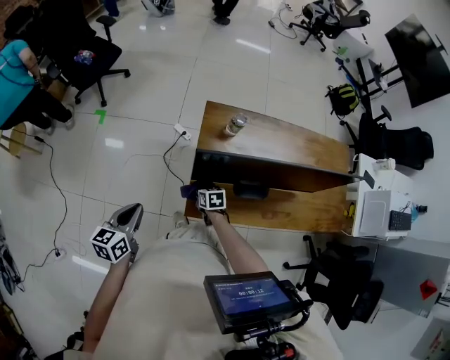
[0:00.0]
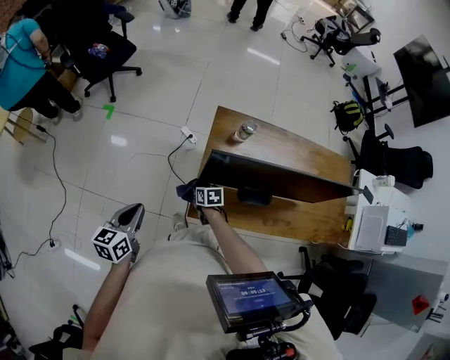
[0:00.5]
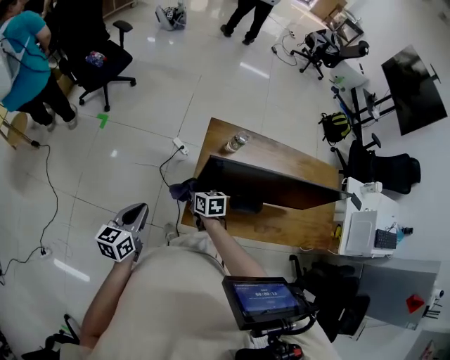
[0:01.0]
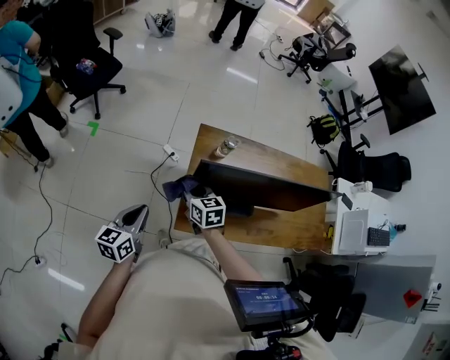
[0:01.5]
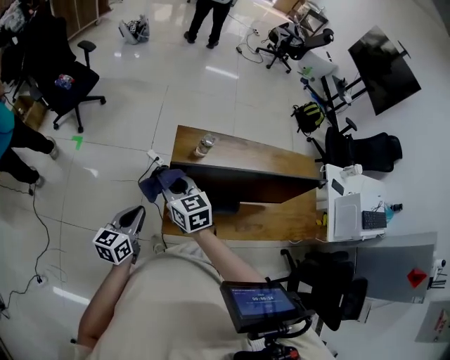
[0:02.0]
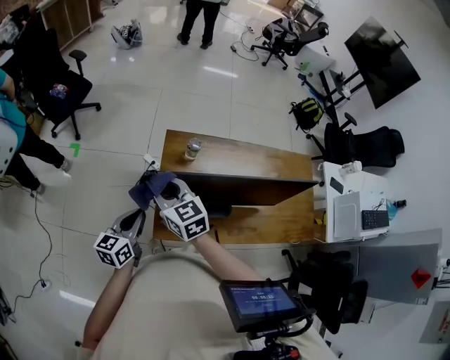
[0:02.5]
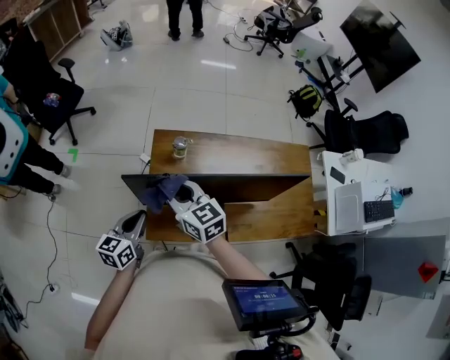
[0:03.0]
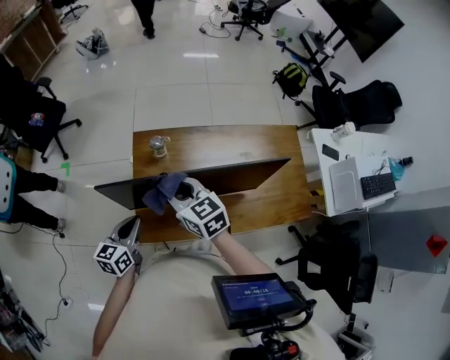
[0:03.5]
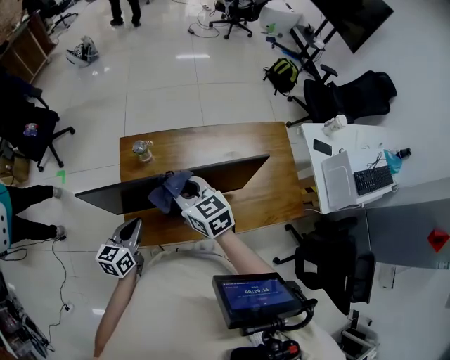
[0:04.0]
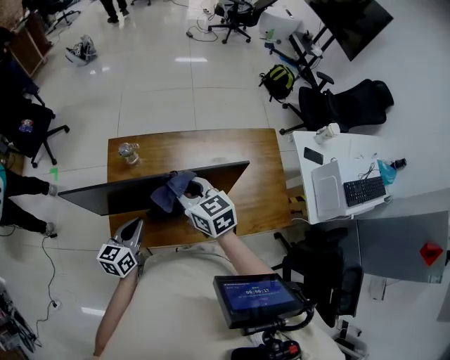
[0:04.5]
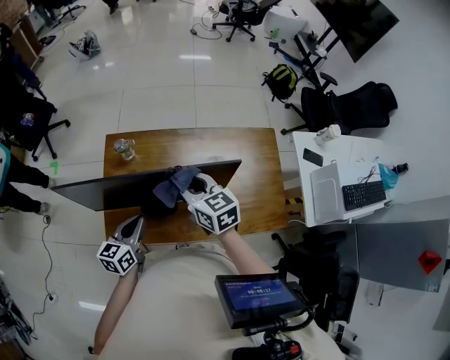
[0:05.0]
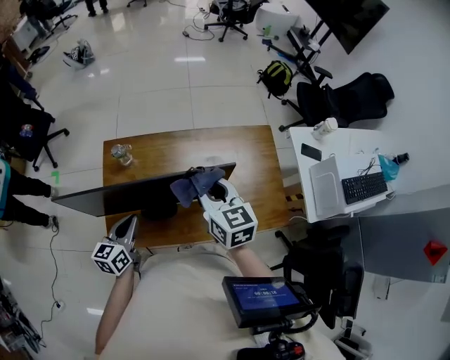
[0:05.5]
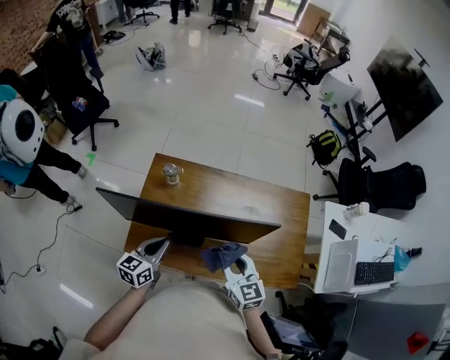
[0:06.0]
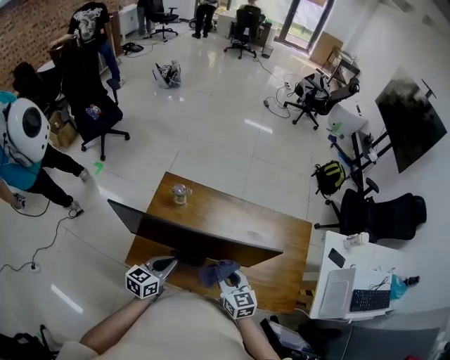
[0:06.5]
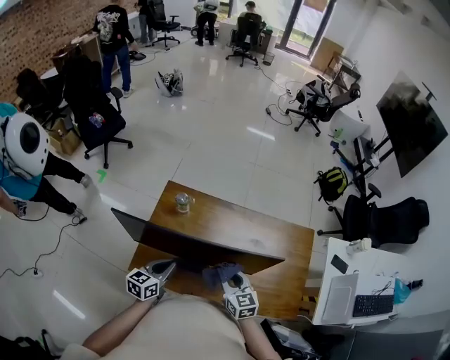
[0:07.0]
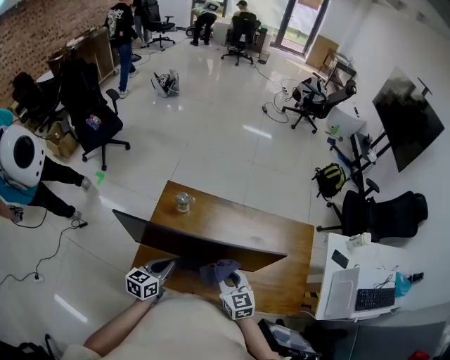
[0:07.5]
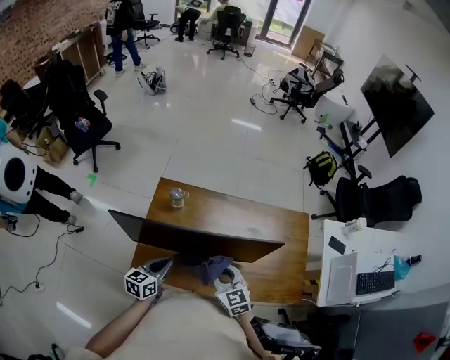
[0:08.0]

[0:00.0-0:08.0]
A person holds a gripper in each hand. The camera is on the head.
0.0 to 2.0 s: The left gripper travels to the right by roughly 10 cm; the right gripper moves upward, some 30 cm, and angles its fingers upward, by about 30 degrees.
2.0 to 4.0 s: Both grippers travel together to the right, approximately 25 cm.
4.0 to 6.0 s: The right gripper moves to the right and backward, some 20 cm; the left gripper heads to the right, covering approximately 10 cm.
6.0 to 8.0 s: The right gripper moves to the left, approximately 5 cm.

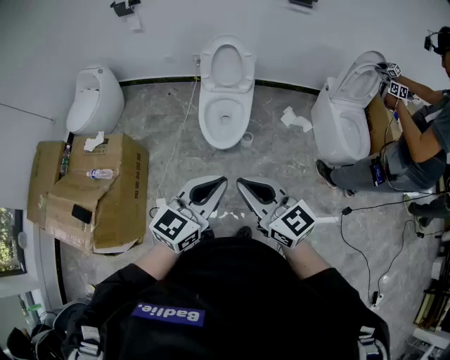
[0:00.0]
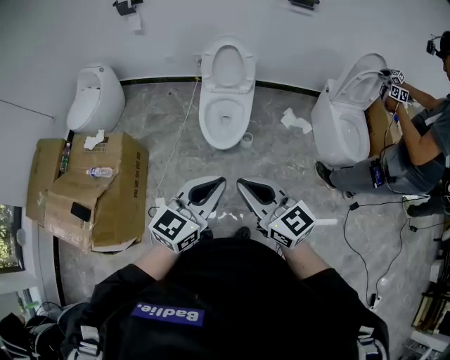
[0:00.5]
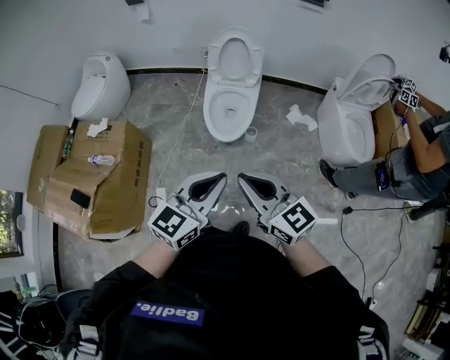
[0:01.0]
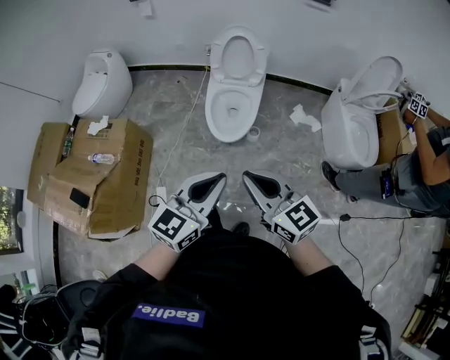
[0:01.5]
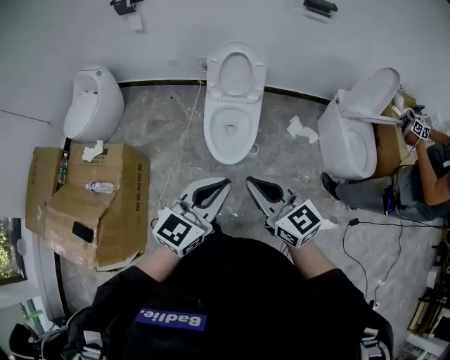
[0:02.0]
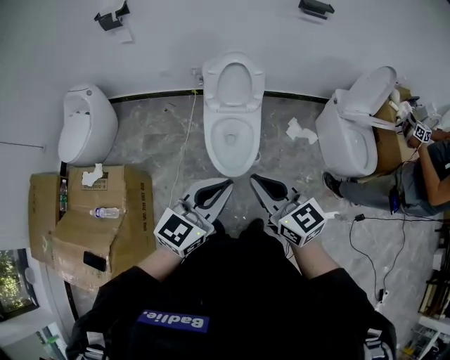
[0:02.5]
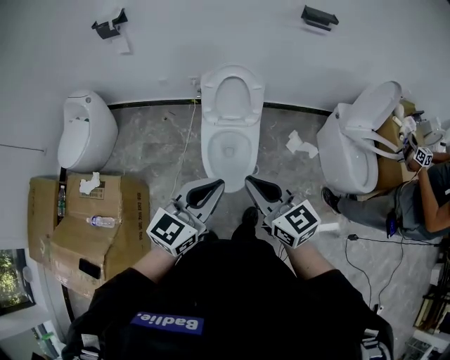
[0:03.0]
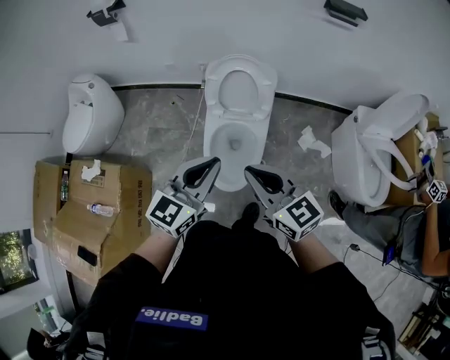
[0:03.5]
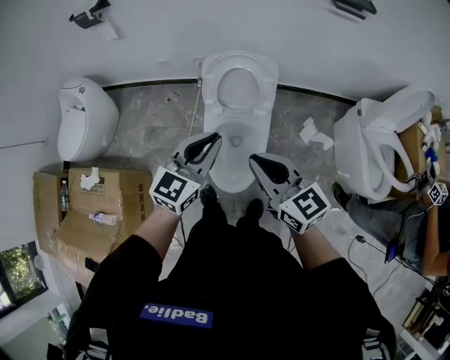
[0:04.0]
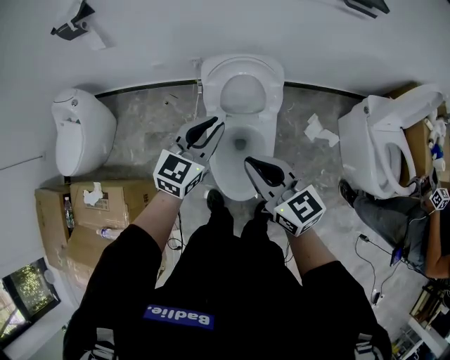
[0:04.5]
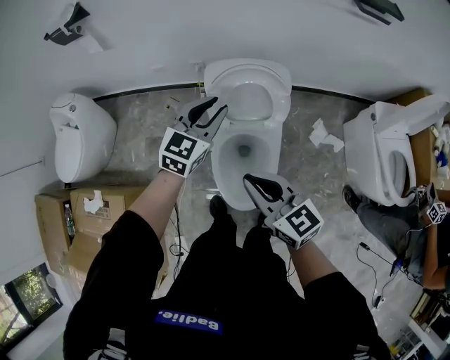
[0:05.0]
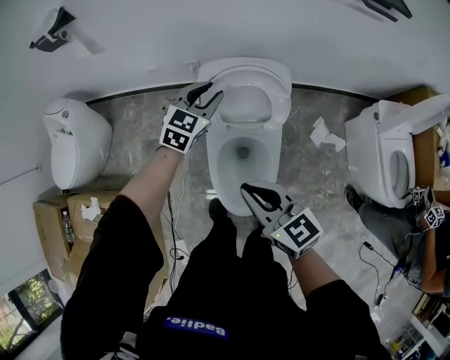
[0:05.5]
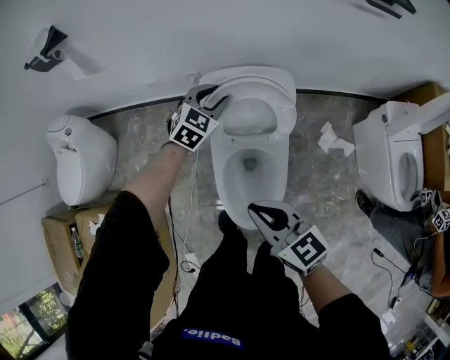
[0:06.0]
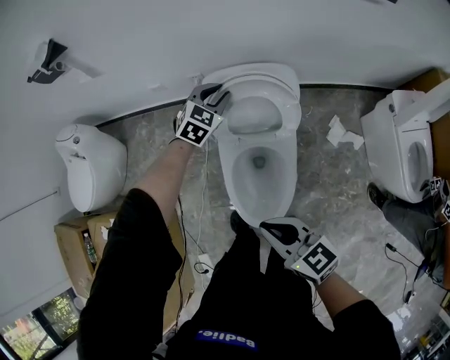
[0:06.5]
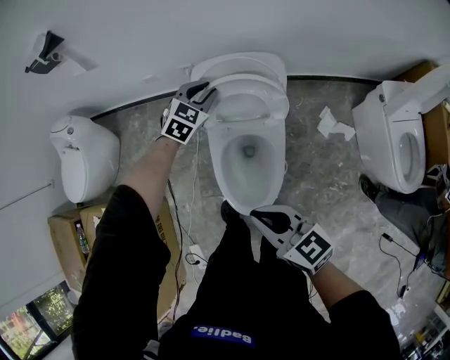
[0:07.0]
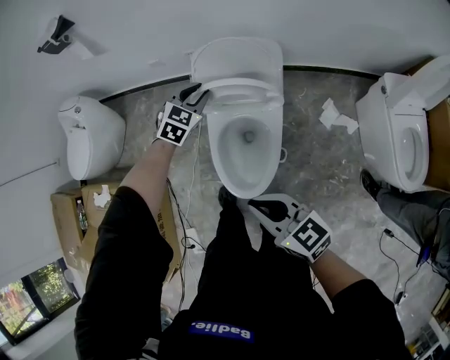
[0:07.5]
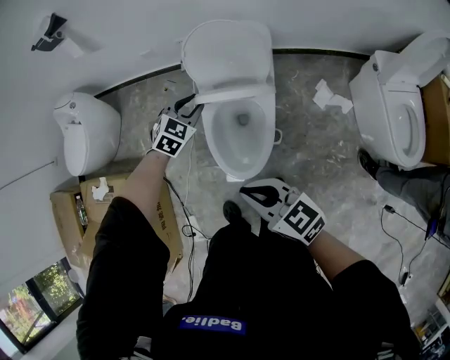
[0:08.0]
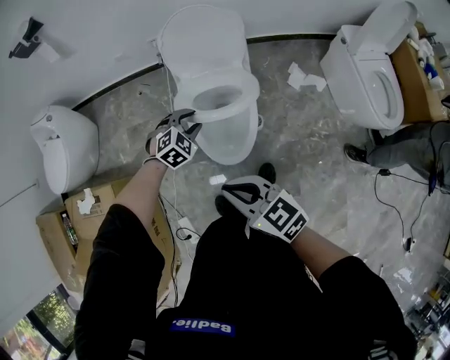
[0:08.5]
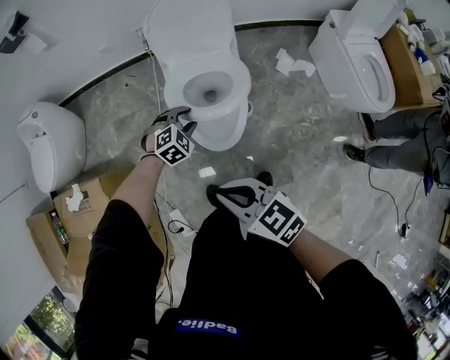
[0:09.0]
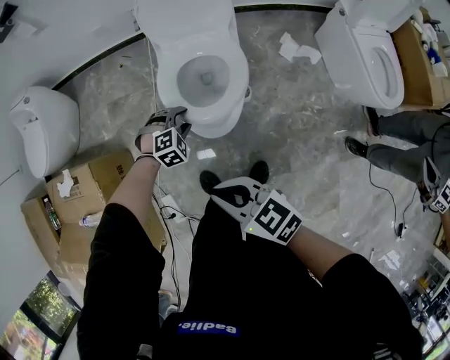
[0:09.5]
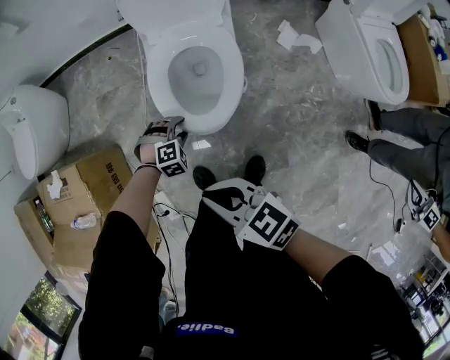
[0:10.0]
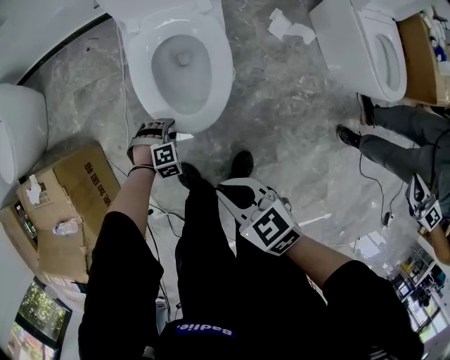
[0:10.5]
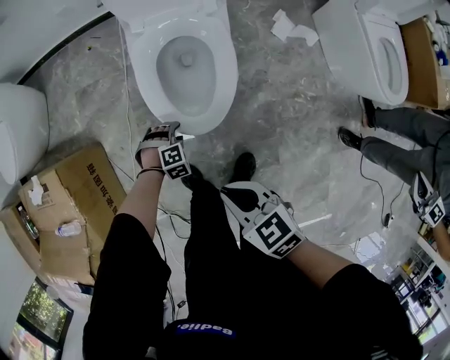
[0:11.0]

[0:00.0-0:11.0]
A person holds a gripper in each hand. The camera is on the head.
0.0 to 2.0 s: Both grippers move forward, roughly 10 cm.
2.0 to 3.5 s: The grippers both shift forward by roughly 30 cm.
3.5 to 5.5 s: The left gripper travels forward and downward by roughly 40 cm, rotates some 20 degrees, and opens its fingers; the right gripper moves forward, downward and to the left, about 20 cm.
5.5 to 7.5 s: The left gripper travels backward and downward by about 10 cm. Meanwhile the right gripper goes some 15 cm backward.
7.5 to 9.0 s: The right gripper shifts some 20 cm backward and to the left, while the left gripper is displaced backward and downward by approximately 30 cm, and turns by approximately 30 degrees.
9.0 to 11.0 s: The right gripper shifts some 15 cm downward; the left gripper moves downward, roughly 25 cm, and swivels roughly 20 degrees.

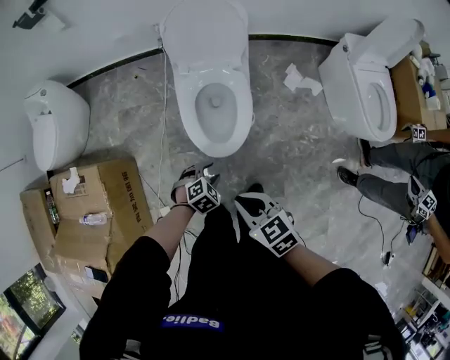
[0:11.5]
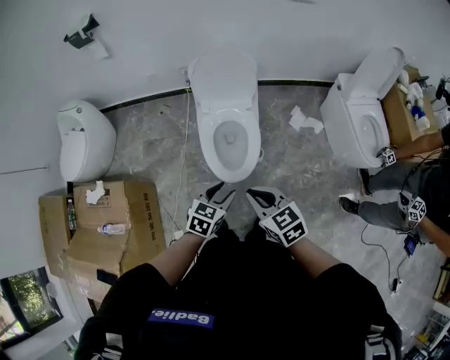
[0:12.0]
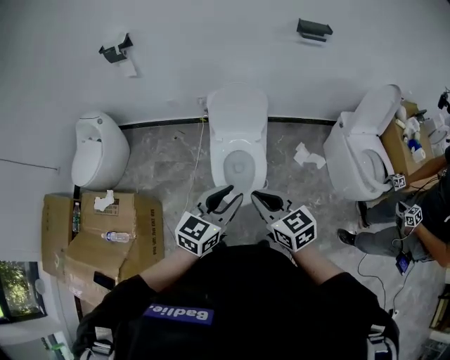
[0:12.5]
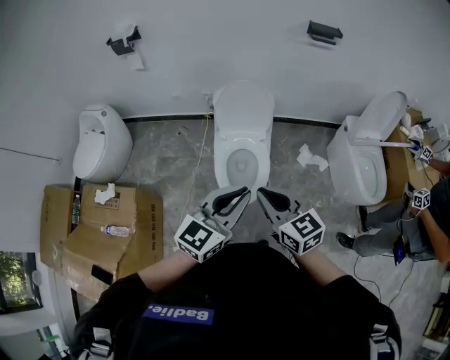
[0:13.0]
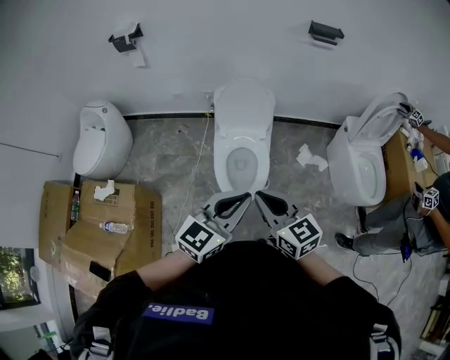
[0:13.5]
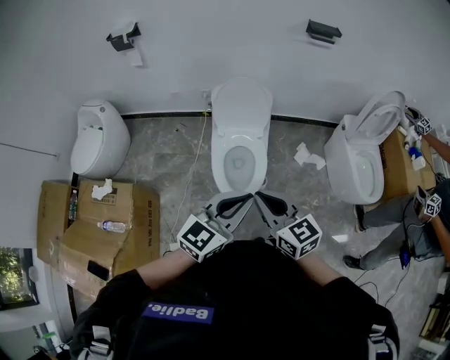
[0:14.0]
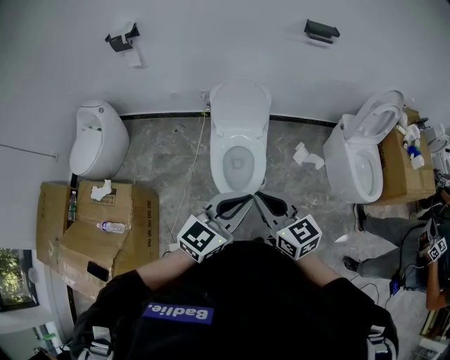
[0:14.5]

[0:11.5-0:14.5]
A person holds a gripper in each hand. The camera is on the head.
11.5 to 13.0 s: The right gripper heads upward, covering approximately 25 cm, and changes its angle by roughly 30 degrees, while the left gripper heads upward, covering approximately 50 cm, tips its fingers upward by approximately 60 degrees, and closes.
13.0 to 14.5 s: The grippers make only small movements.

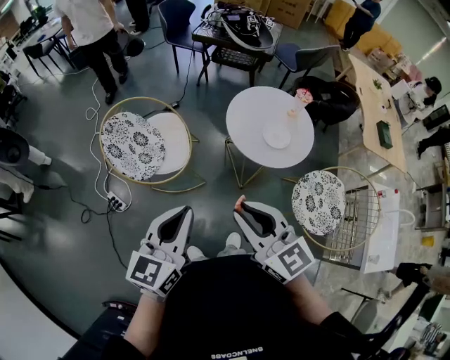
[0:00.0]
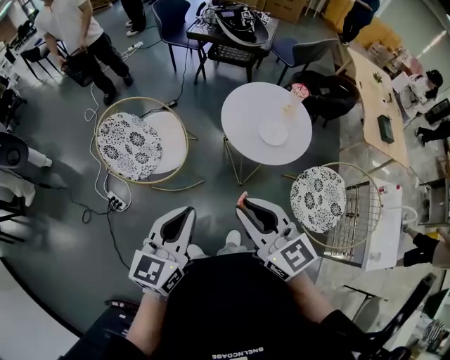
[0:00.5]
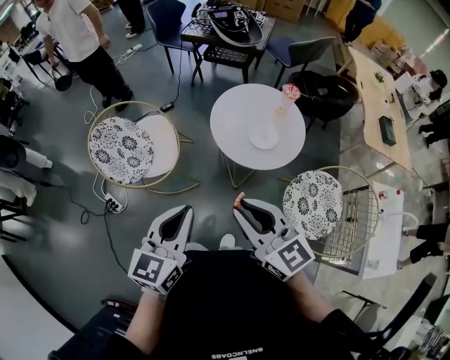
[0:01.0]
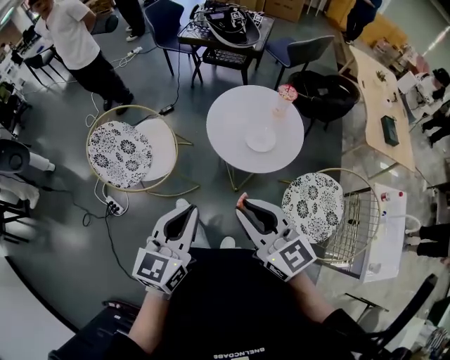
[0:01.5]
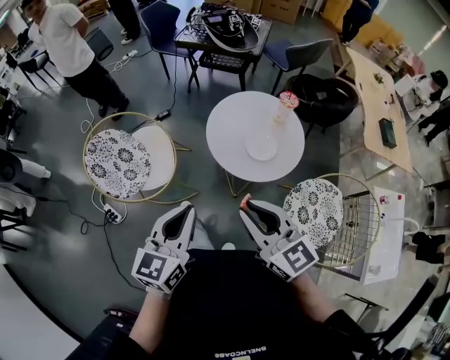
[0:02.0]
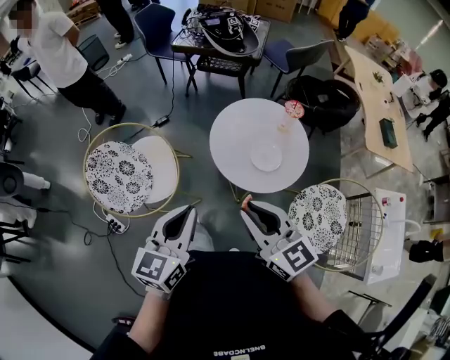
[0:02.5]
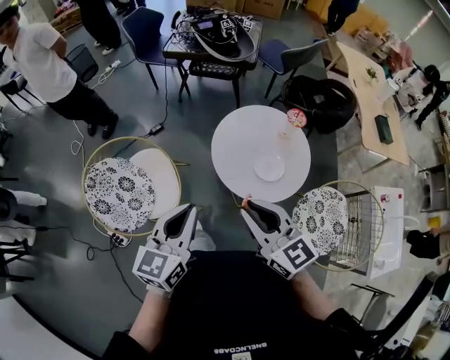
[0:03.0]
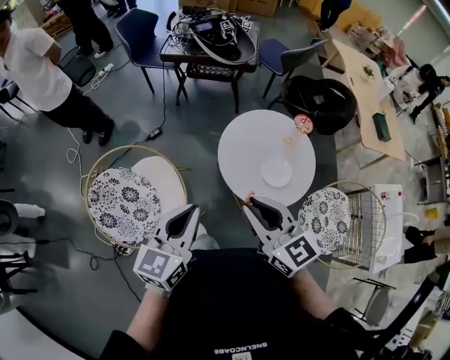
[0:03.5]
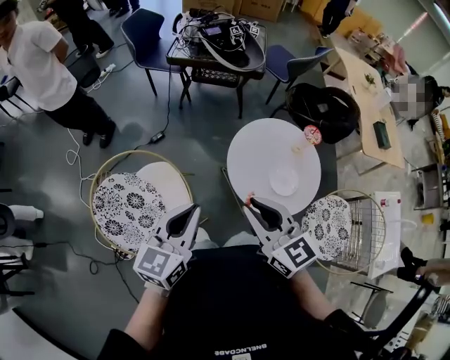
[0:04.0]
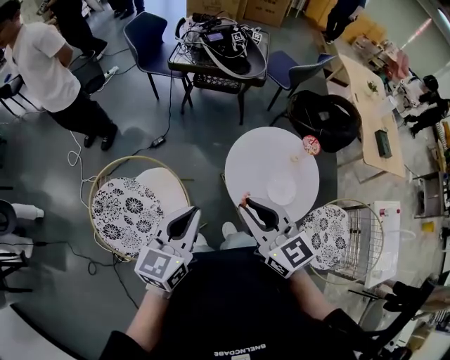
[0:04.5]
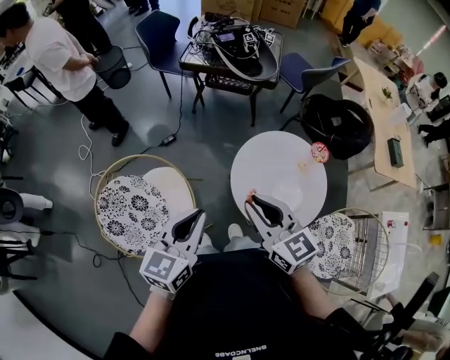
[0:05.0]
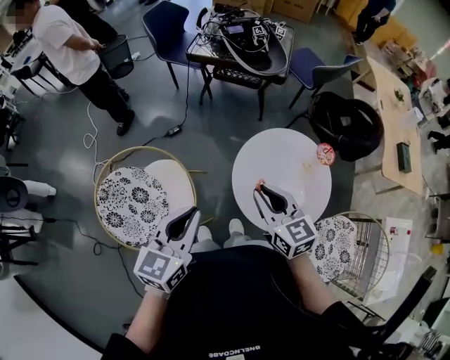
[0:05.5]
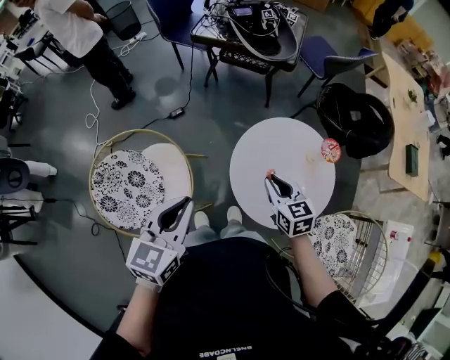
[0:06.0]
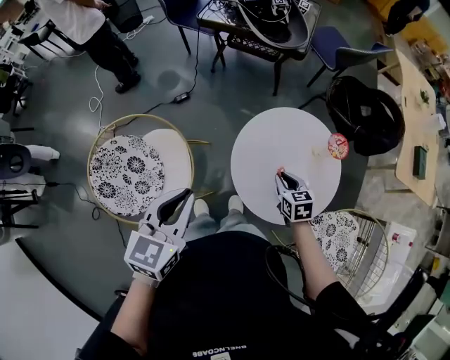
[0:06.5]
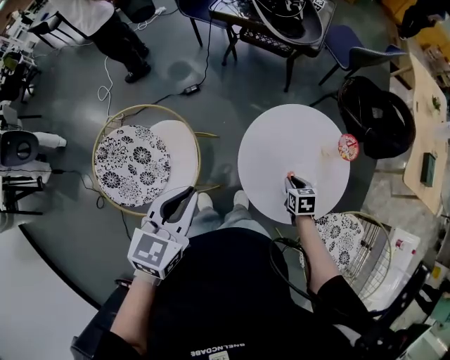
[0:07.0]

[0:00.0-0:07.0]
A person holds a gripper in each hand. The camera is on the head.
0.0 to 2.0 s: The grippers both shift to the right and forward by some 15 cm.
2.0 to 3.5 s: Both grippers travel together forward and to the left, some 20 cm.
3.5 to 5.0 s: The two grippers go about 10 cm forward.
5.0 to 7.0 s: The right gripper heads downward and to the right, covering about 40 cm, and tilts its fingers some 50 degrees downward, while the left gripper moves approximately 5 cm.
